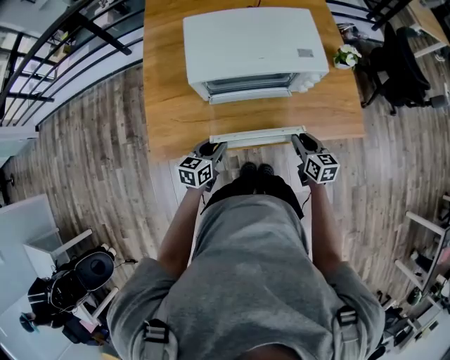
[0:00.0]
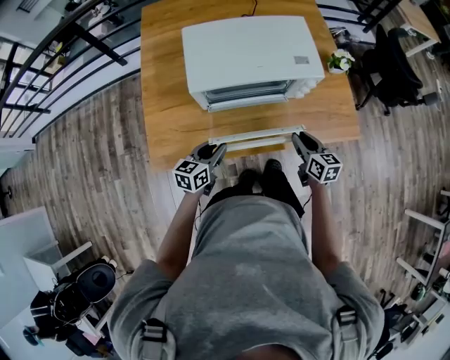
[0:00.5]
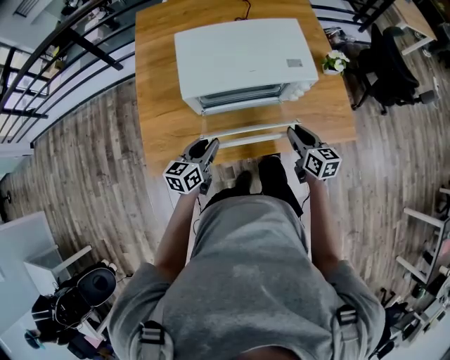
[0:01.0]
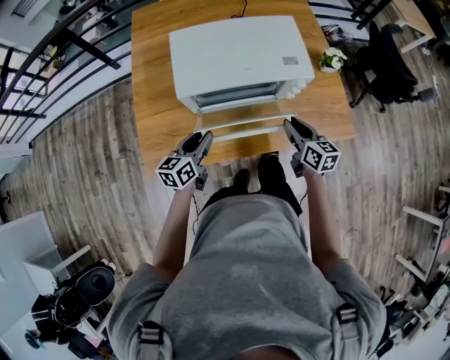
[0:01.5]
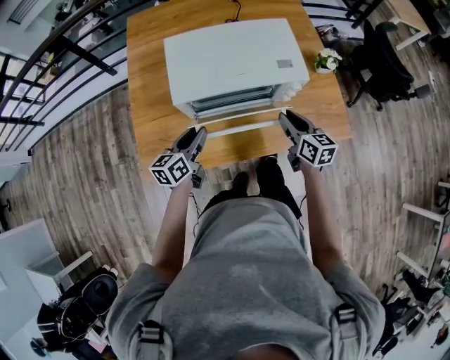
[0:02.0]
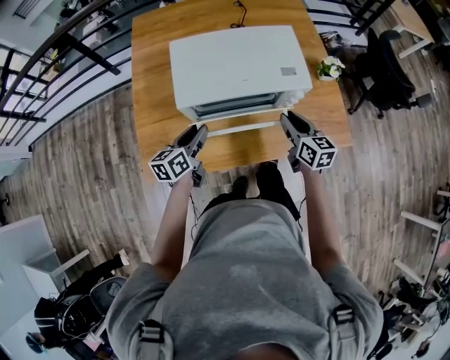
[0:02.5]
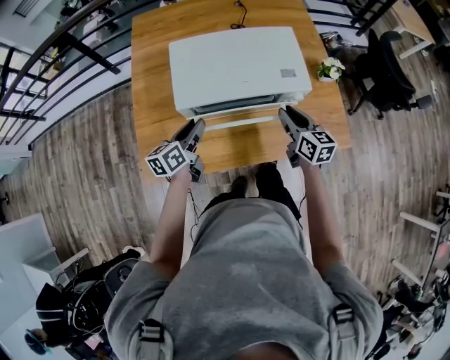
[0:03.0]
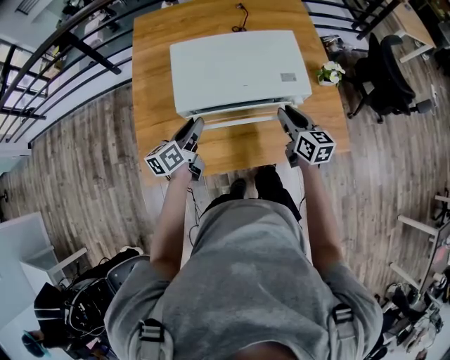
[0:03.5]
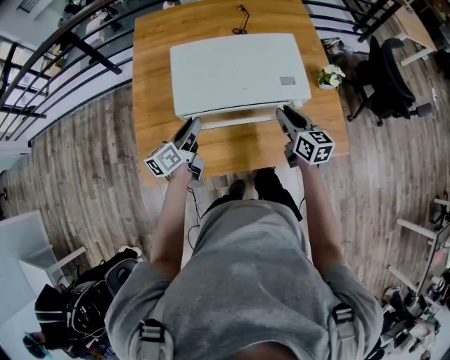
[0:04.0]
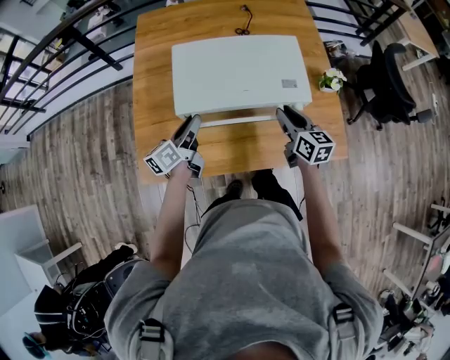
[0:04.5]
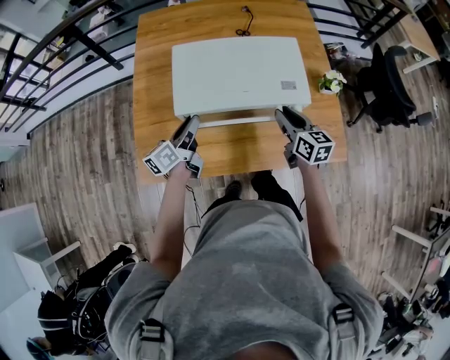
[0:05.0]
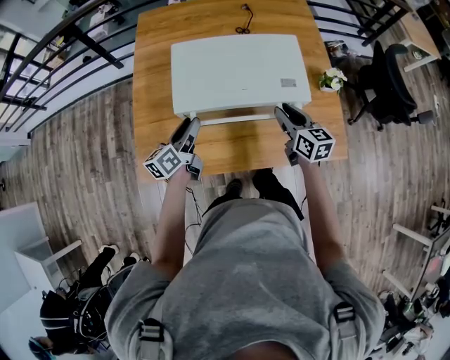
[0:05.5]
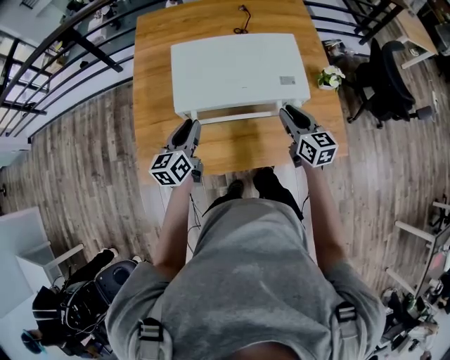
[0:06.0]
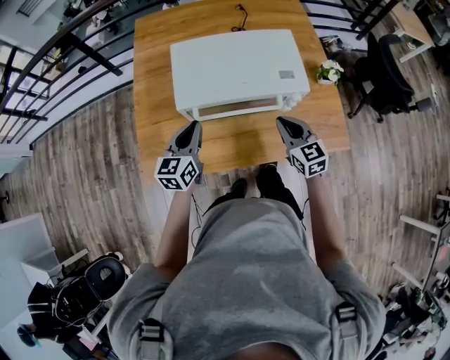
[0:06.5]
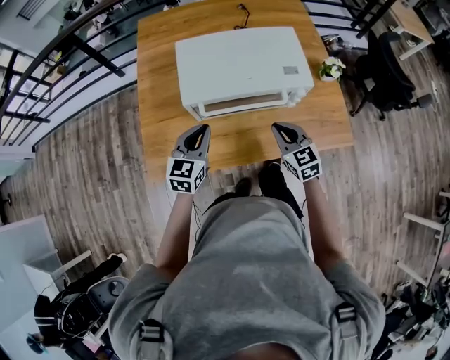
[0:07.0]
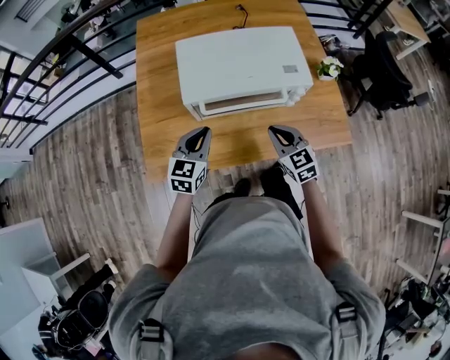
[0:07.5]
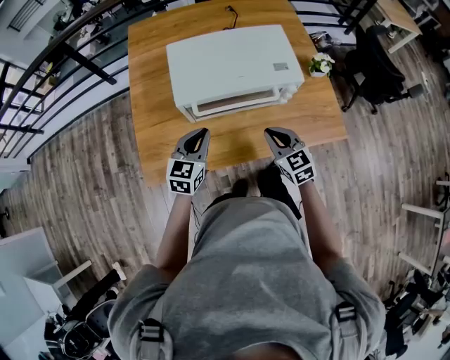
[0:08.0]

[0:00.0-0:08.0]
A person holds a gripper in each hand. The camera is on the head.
0:00.0 to 0:02.0: Both grippers move upward and forward, about 15 cm.
0:02.0 to 0:04.0: The two grippers go some 5 cm forward.
0:04.0 to 0:06.0: The left gripper rotates roughly 20 degrees.
0:06.0 to 0:08.0: The right gripper moves backward and to the left, approximately 15 cm, and changes its angle by approximately 20 degrees; the left gripper goes roughly 5 cm backward, and rotates about 30 degrees.

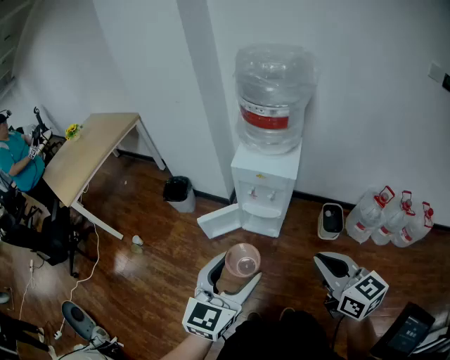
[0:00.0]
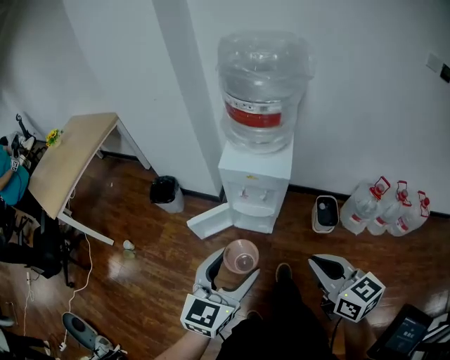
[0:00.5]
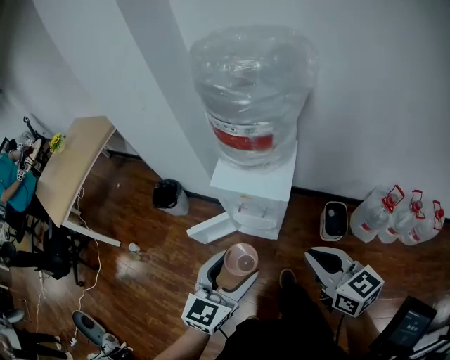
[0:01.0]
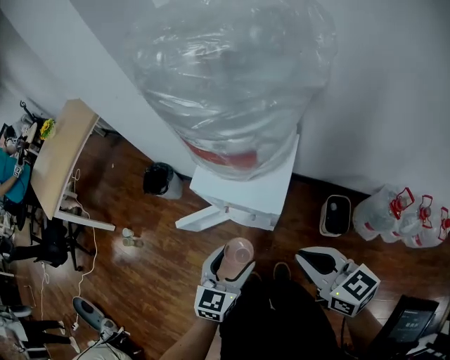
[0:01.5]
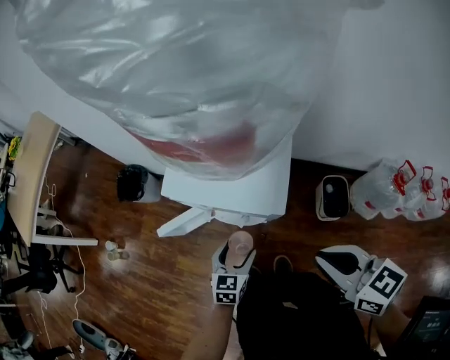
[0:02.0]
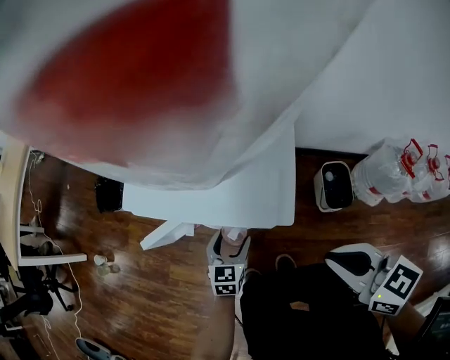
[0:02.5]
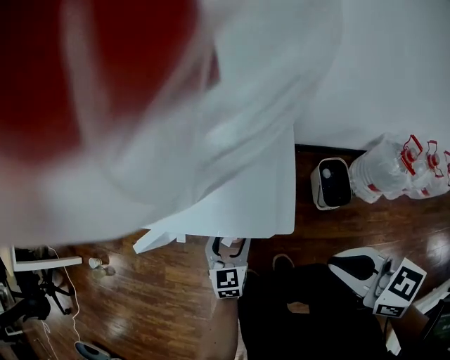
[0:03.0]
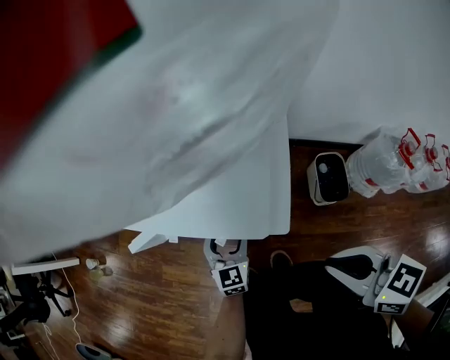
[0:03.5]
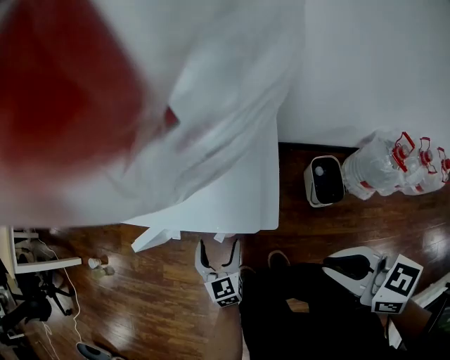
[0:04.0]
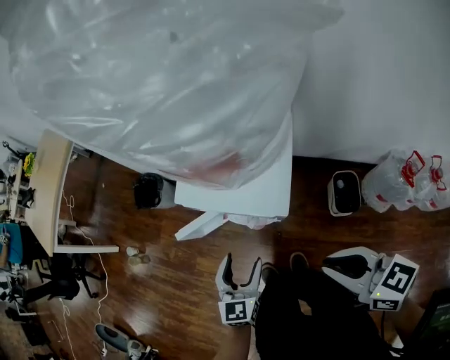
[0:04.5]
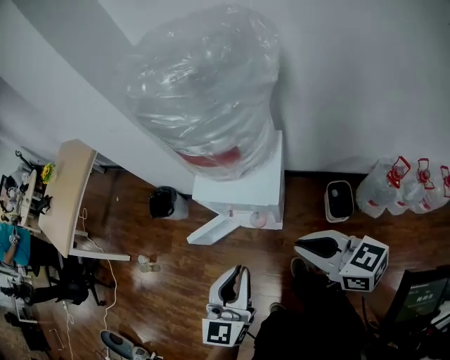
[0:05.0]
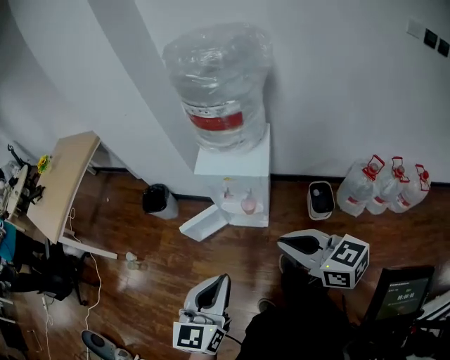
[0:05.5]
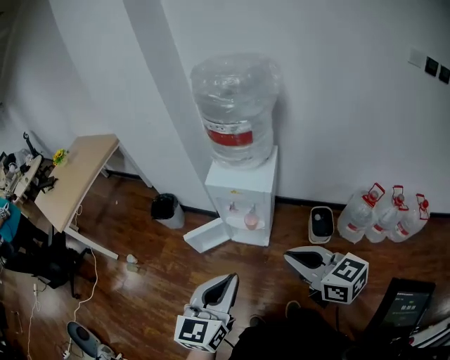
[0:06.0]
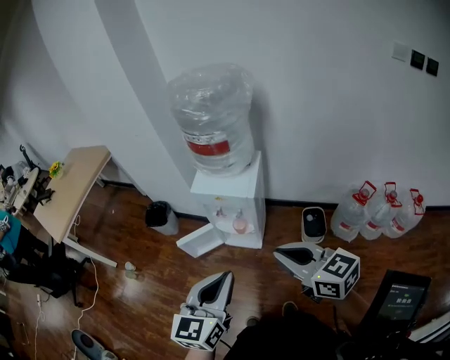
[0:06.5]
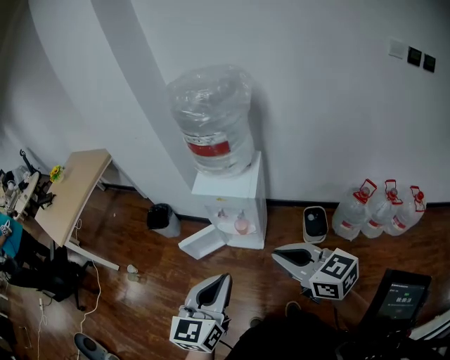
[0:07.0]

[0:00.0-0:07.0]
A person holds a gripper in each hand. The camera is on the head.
0:00.0 to 0:02.0: The right gripper shifts some 35 cm forward and downward, while the left gripper moves downward and forward, some 60 cm, and turns by roughly 30 degrees.
0:02.0 to 0:03.5: The right gripper moves downward, about 15 cm. Meanwhile the left gripper is displaced downward and forward by roughly 15 cm.
0:03.5 to 0:05.0: The right gripper shifts roughly 25 cm upward, while the left gripper goes some 50 cm upward, turns by about 20 degrees, and closes its fingers.
0:05.0 to 0:07.0: The grippers both shift backward and upward by some 20 cm.

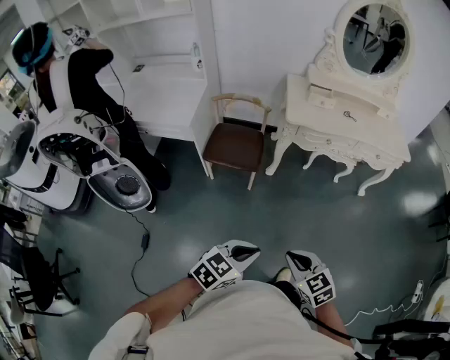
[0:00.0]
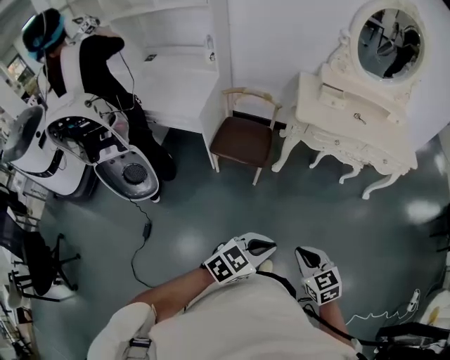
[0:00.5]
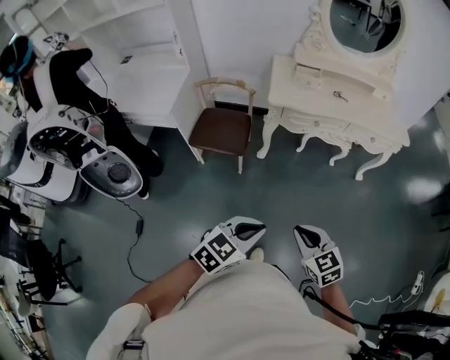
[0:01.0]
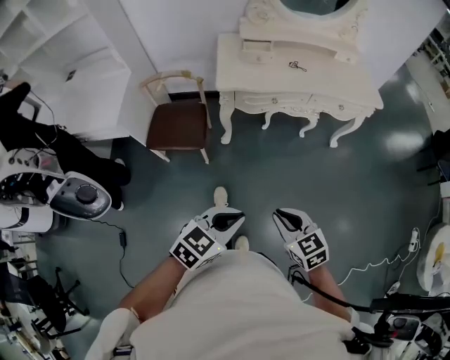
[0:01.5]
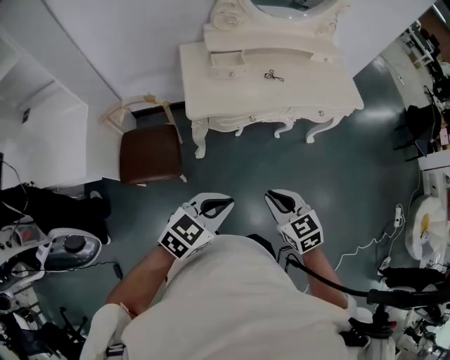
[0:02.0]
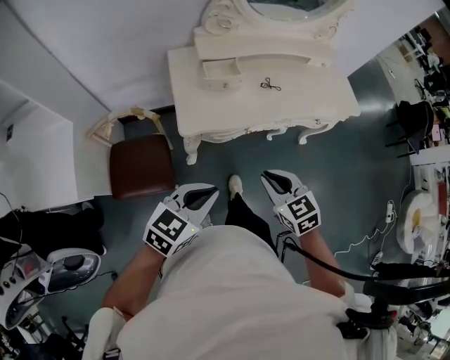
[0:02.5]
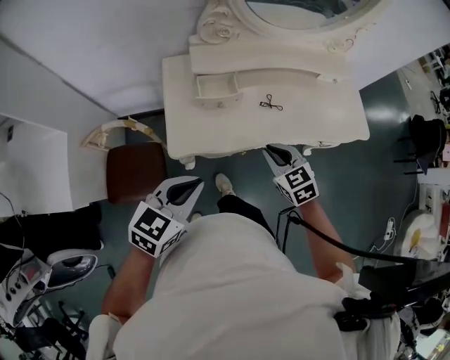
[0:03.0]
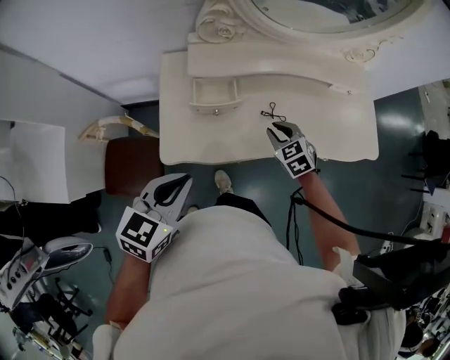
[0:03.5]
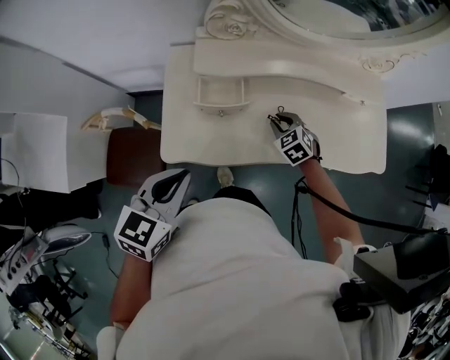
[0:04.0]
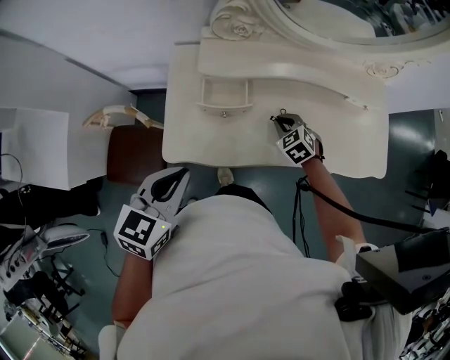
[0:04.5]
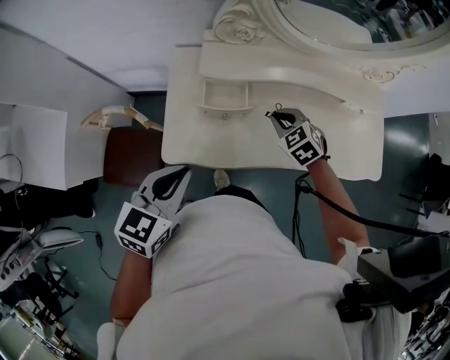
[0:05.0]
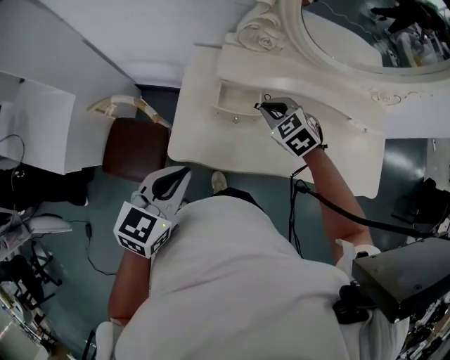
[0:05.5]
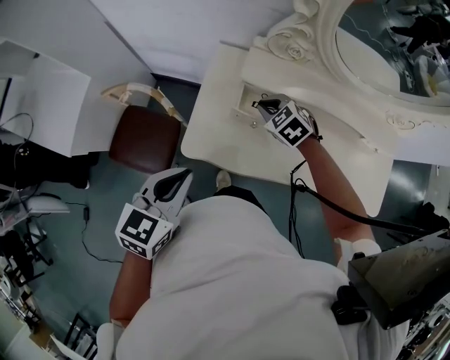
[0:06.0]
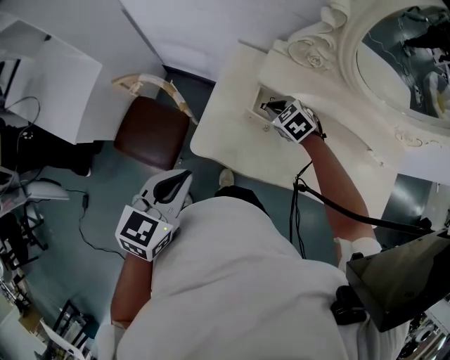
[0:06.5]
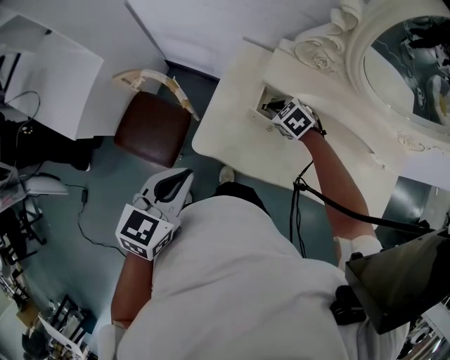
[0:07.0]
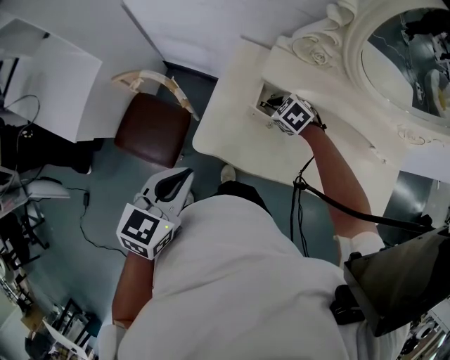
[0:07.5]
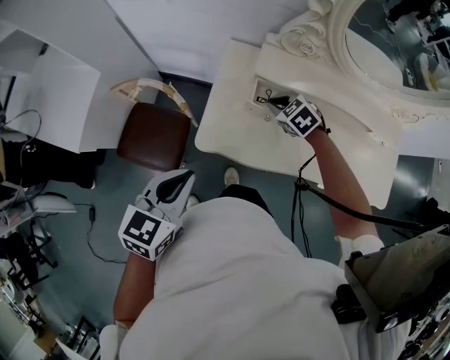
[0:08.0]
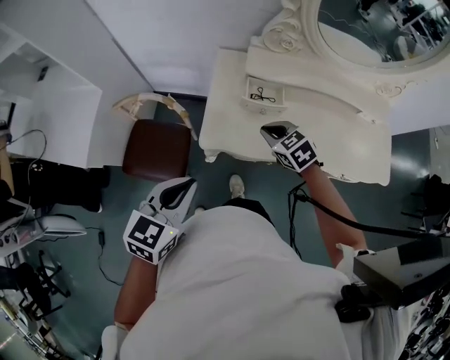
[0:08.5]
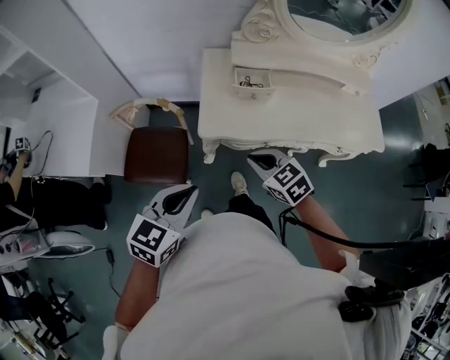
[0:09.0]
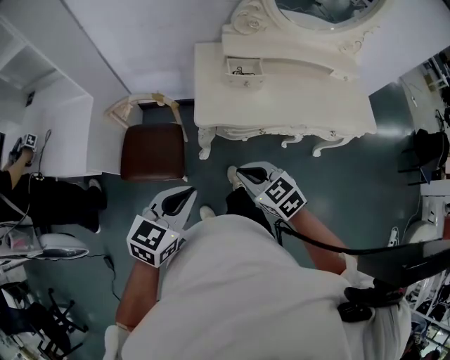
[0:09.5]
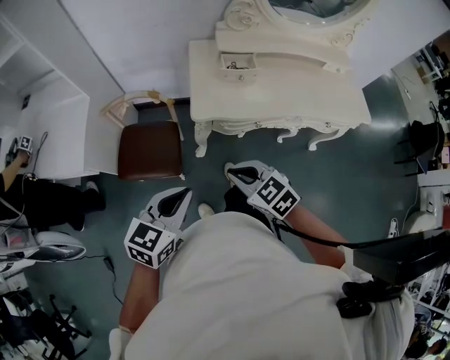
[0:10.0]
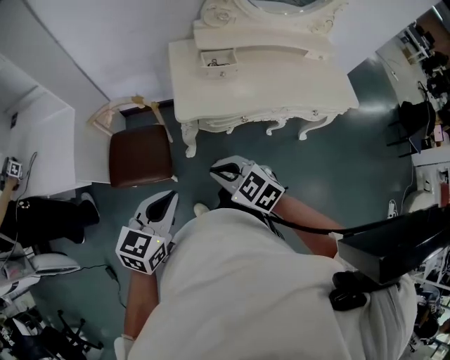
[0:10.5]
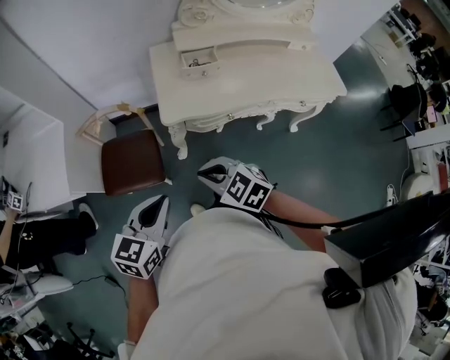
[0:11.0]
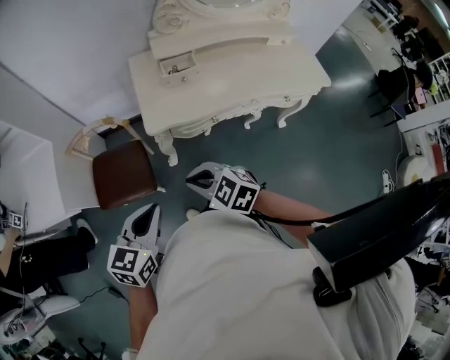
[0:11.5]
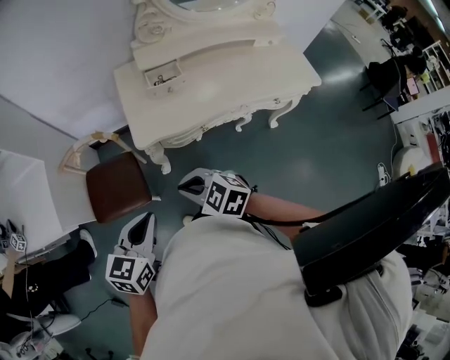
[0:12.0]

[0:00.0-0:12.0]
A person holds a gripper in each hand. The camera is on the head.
0:00.0 to 0:02.0: The two grippers travel together, forward, about 40 cm. The right gripper turns by roughly 20 degrees.
0:02.0 to 0:04.0: The two grippers go roughly 50 cm forward. The right gripper swivels roughly 30 degrees; the left gripper rotates approximately 30 degrees.
0:04.0 to 0:06.0: The left gripper moves to the left, about 10 cm; the right gripper moves to the left, about 20 cm, and rotates about 30 degrees.
0:06.0 to 0:08.0: The left gripper shifts about 5 cm to the left, while the right gripper goes downward and returns, about 10 cm each way.
0:08.0 to 0:10.0: The right gripper shifts roughly 40 cm backward, and rotates approximately 30 degrees. The left gripper goes some 25 cm backward and to the left.
0:10.0 to 0:12.0: The grippers move only a little.
